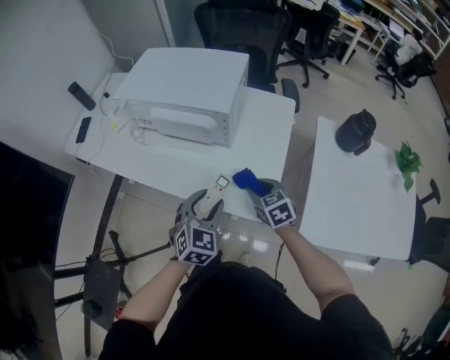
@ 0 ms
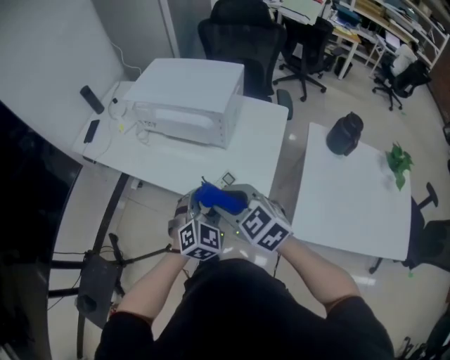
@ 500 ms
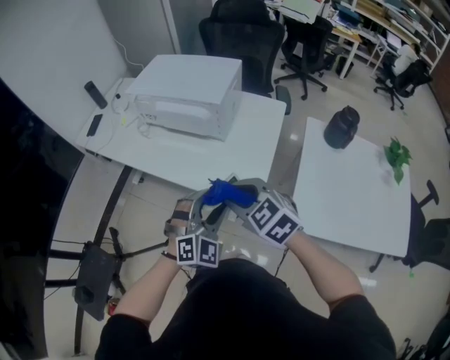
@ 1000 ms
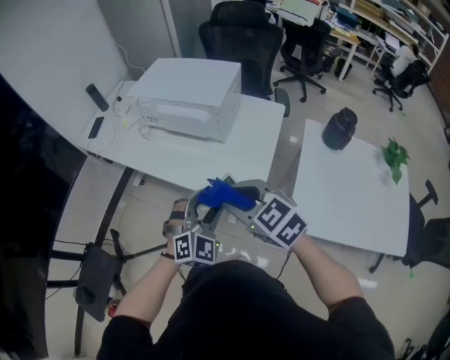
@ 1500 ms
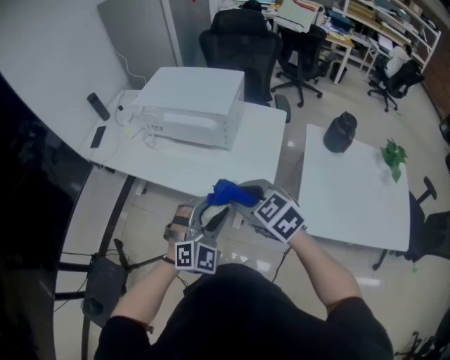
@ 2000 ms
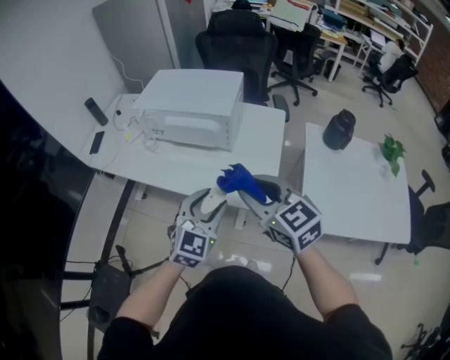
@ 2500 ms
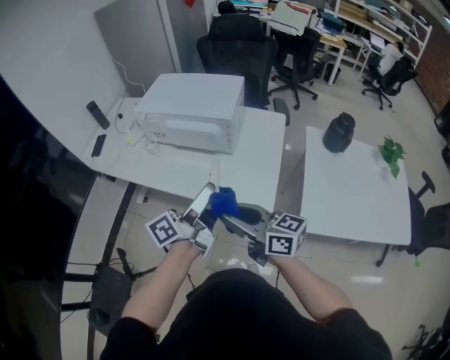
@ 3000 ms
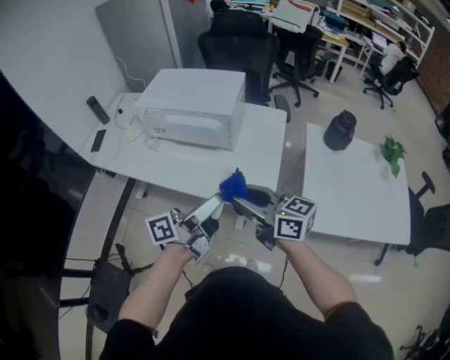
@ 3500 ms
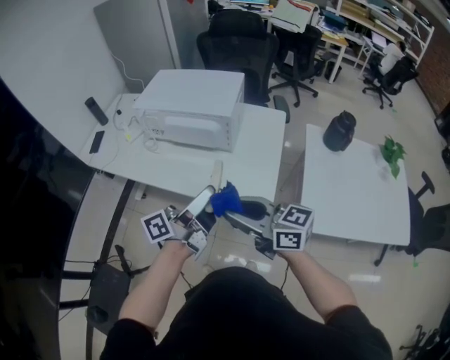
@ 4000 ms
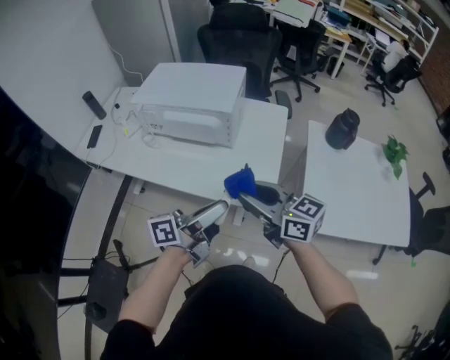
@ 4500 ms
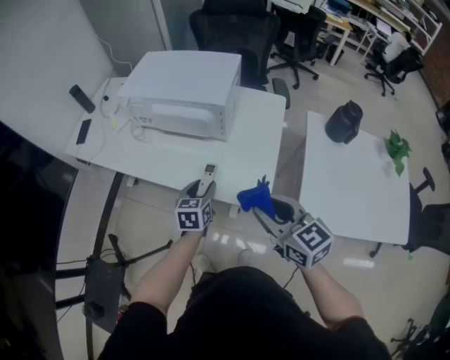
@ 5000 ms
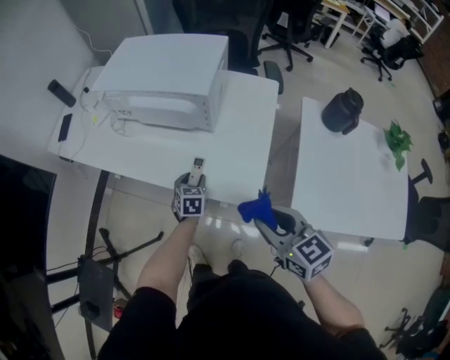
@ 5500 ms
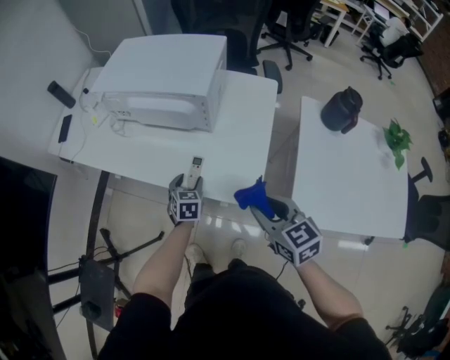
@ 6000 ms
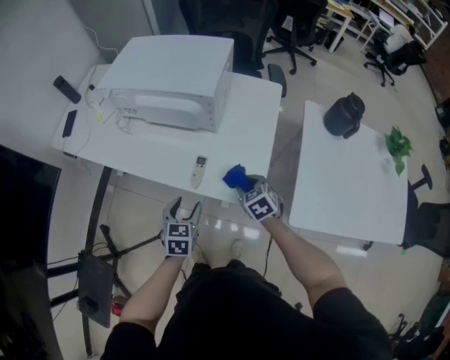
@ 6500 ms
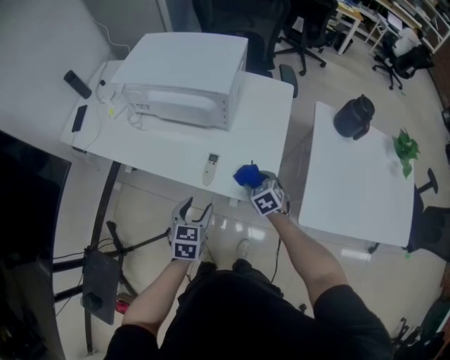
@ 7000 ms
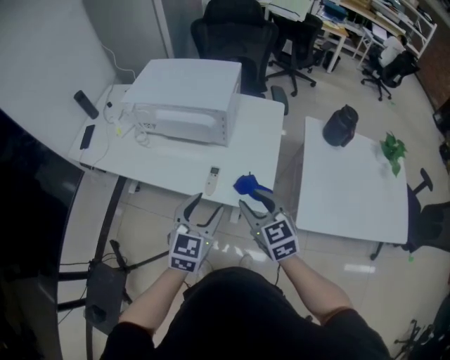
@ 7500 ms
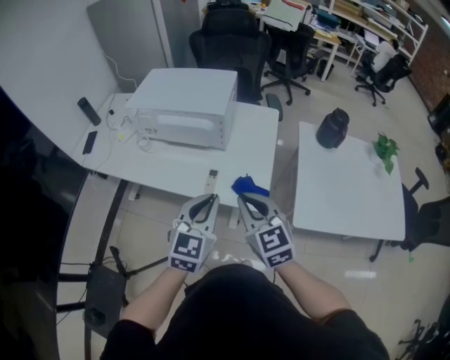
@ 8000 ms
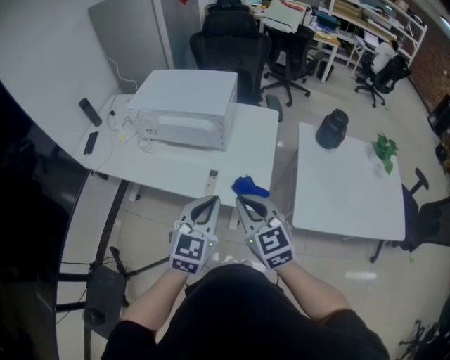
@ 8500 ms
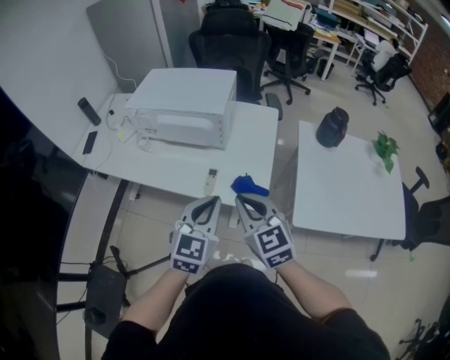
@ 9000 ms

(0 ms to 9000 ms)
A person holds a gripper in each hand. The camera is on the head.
0 ms - 2000 ms: The right gripper heads upward, backward and to the left, covering about 25 cm, and changes its angle by approximately 20 degrees. The left gripper moves backward and upward, roughly 15 cm, and changes its angle by about 30 degrees.
2000 ms - 4500 ms: The left gripper rolls counterclockwise, seen from behind, by about 110 degrees. The right gripper points its fingers roughly 30 degrees further upward.
4500 ms - 7000 ms: Both grippers travel together downward, roughly 25 cm. The right gripper points its fingers some 50 degrees further downward, and opens up. The left gripper angles its fingers downward, by approximately 50 degrees.
7000 ms - 9000 ms: The left gripper travels upward by roughly 20 cm, swivels roughly 30 degrees, and closes its fingers, while the right gripper travels upward and backward by approximately 30 cm, points its fingers about 40 degrees further upward, and closes up.

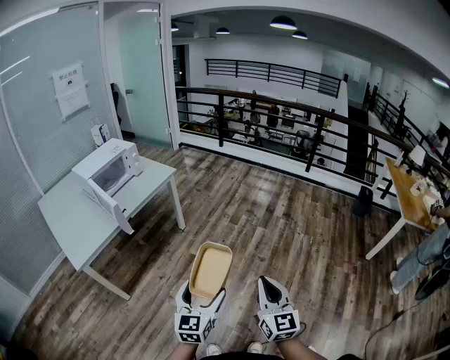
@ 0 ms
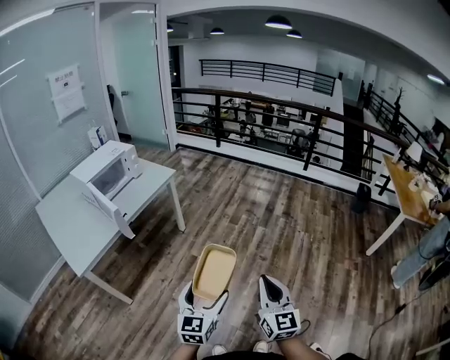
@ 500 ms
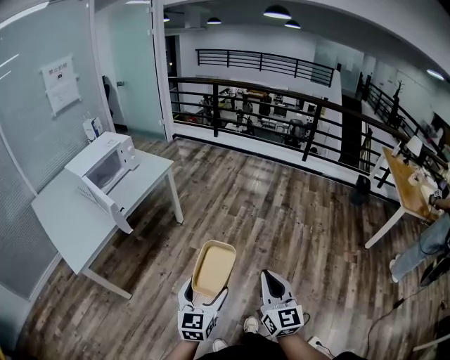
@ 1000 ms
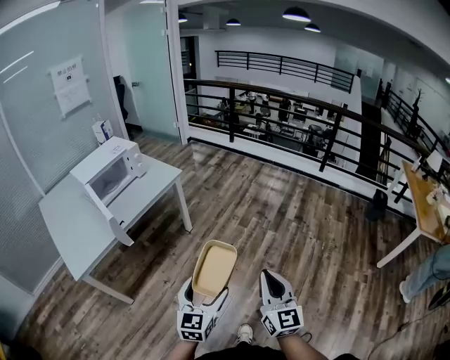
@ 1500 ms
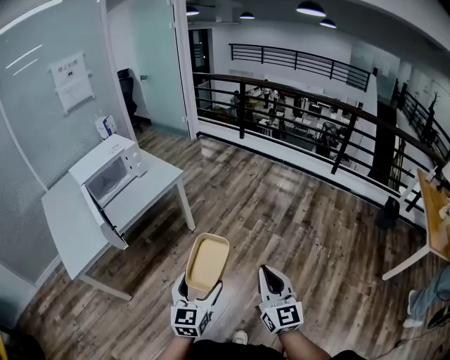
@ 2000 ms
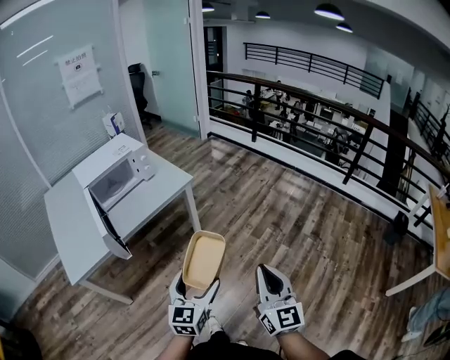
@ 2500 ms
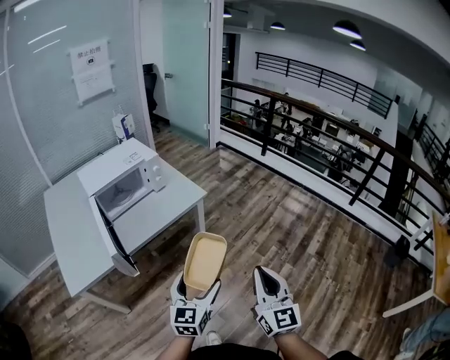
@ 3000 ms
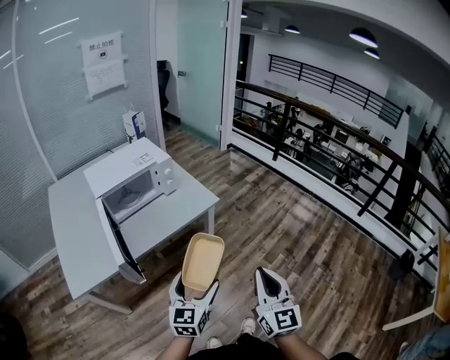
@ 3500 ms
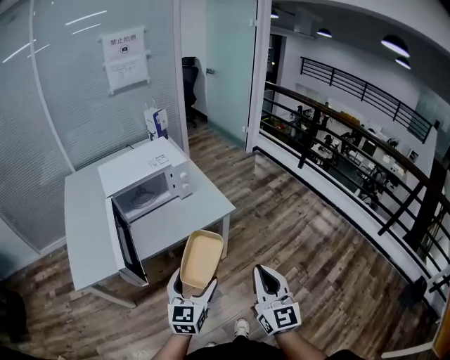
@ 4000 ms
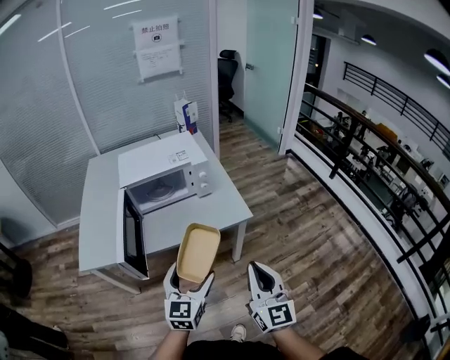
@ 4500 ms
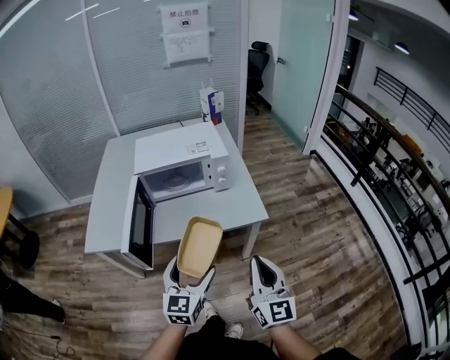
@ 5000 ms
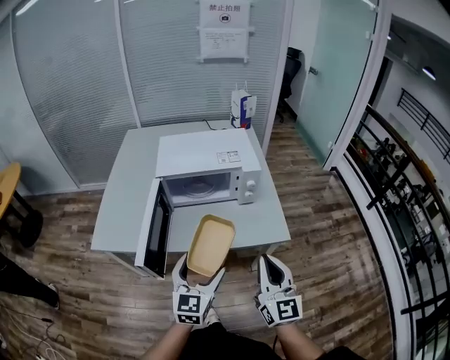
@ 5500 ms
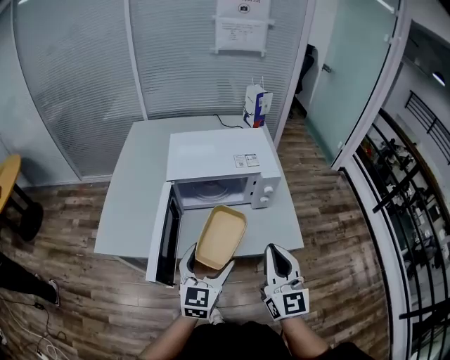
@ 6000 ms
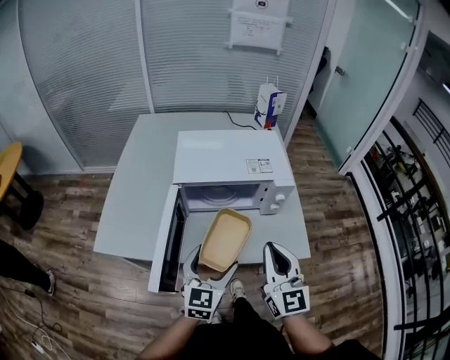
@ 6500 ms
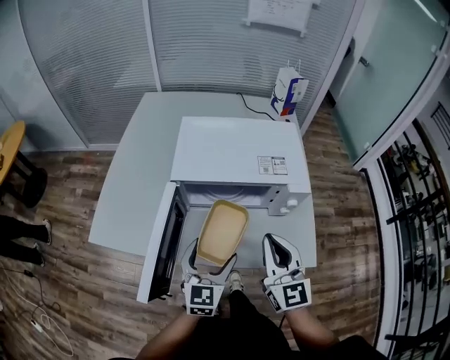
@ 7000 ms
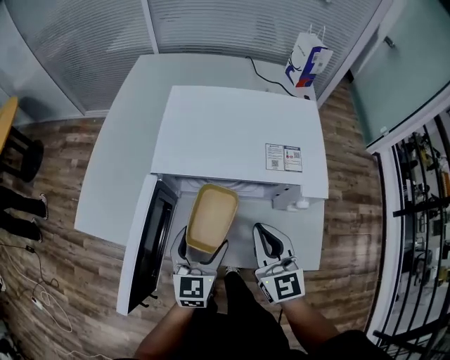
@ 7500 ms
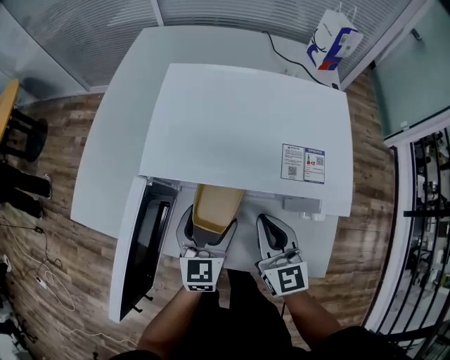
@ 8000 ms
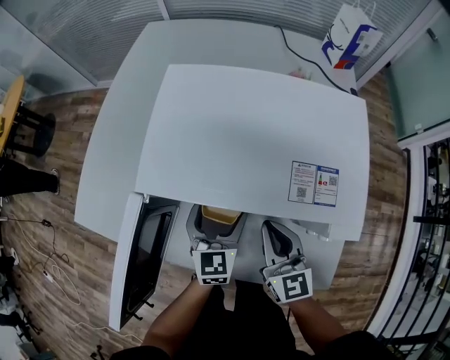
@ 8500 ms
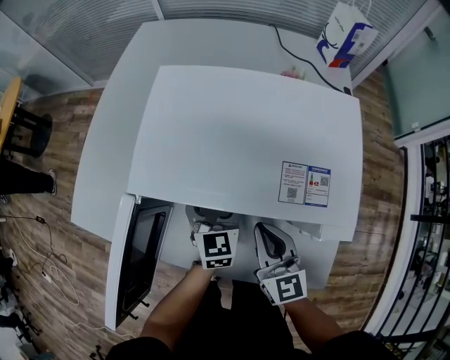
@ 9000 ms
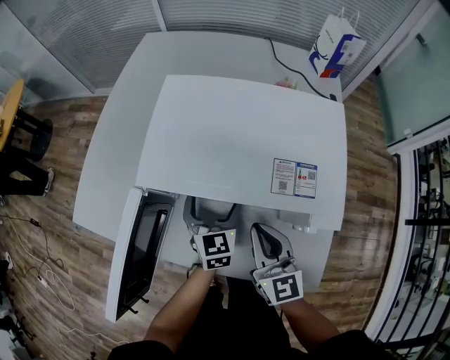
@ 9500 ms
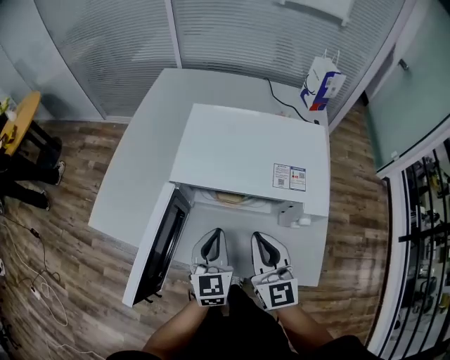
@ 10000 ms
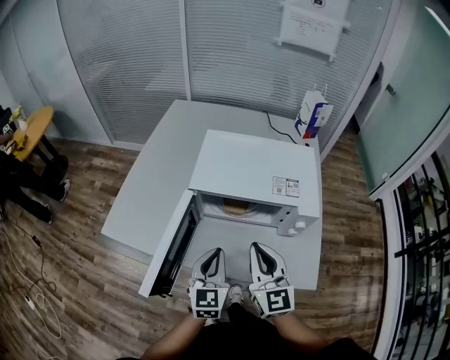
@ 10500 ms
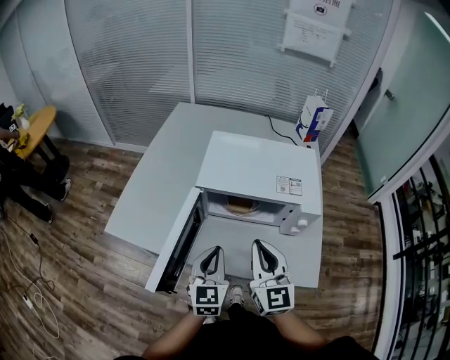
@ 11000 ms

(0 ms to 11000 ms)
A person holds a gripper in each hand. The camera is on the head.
0 ms - 2000 ms: Both grippers move forward, approximately 20 cm.
2000 ms - 3500 ms: The grippers both shift forward and to the left by roughly 30 cm.
3500 ms - 5500 ms: The right gripper ends up approximately 30 cm from where it was, and turns by approximately 40 degrees. The left gripper moves approximately 20 cm, and changes its angle by some 30 degrees.
5500 ms - 7500 ms: The right gripper heads forward, covering about 30 cm, and swivels about 30 degrees. The left gripper shifts approximately 25 cm forward and downward.
7500 ms - 9000 ms: The right gripper is displaced downward and forward by approximately 10 cm; the left gripper heads forward, covering roughly 15 cm.
9000 ms - 11000 ms: The left gripper shifts about 25 cm backward, upward and to the left, and closes; the right gripper travels upward, backward and to the left by some 20 cm.

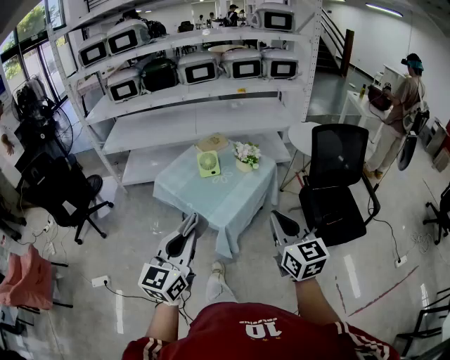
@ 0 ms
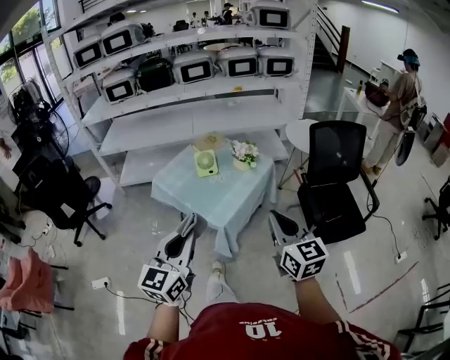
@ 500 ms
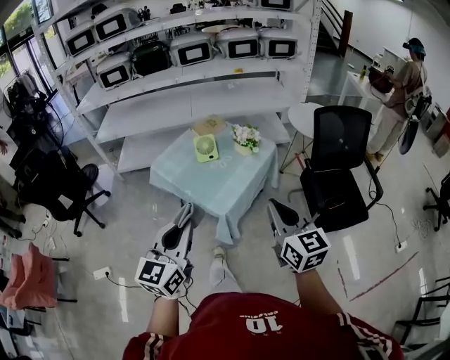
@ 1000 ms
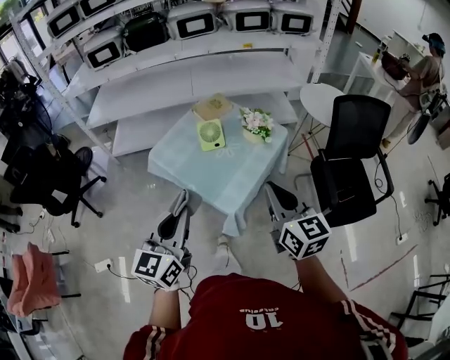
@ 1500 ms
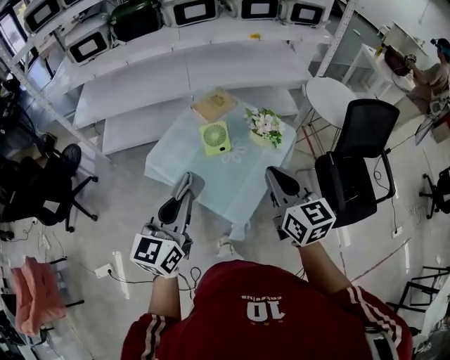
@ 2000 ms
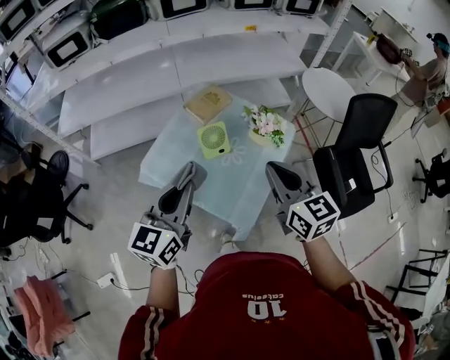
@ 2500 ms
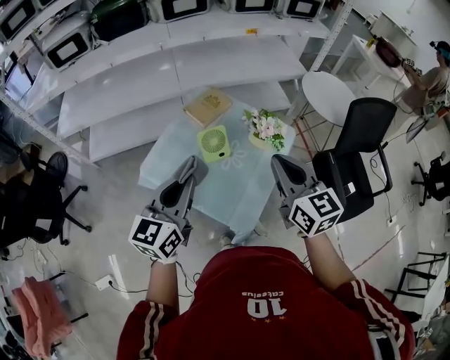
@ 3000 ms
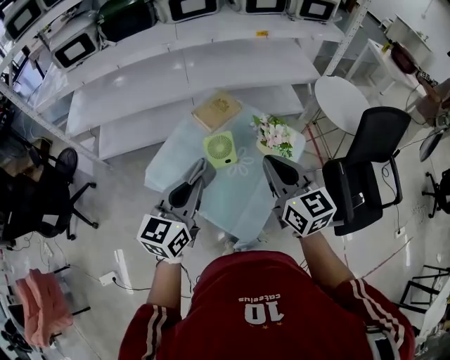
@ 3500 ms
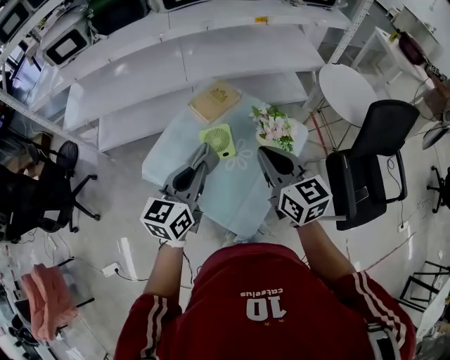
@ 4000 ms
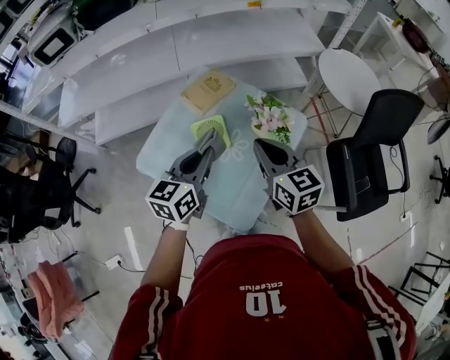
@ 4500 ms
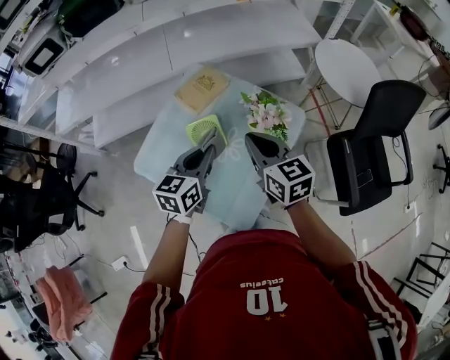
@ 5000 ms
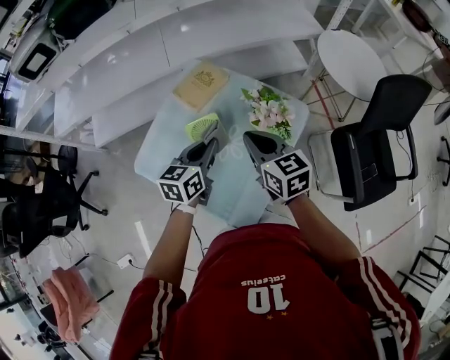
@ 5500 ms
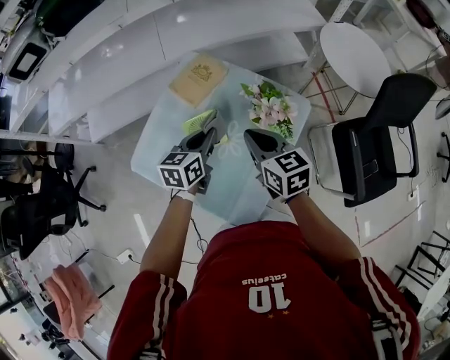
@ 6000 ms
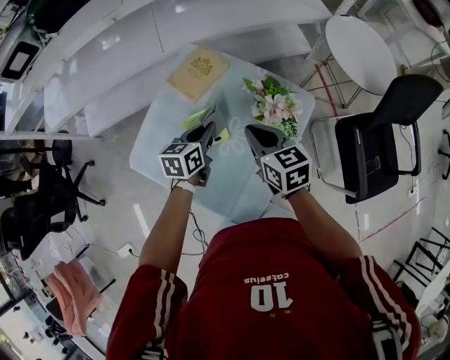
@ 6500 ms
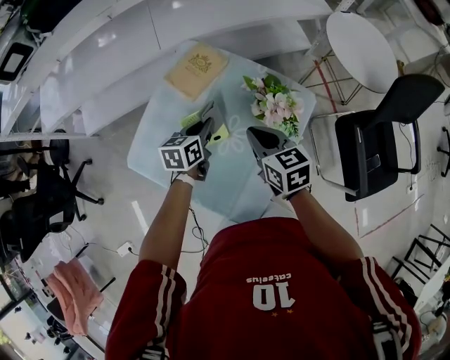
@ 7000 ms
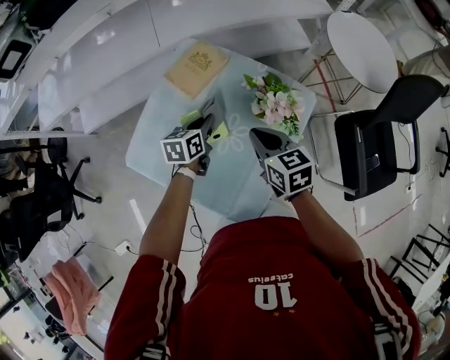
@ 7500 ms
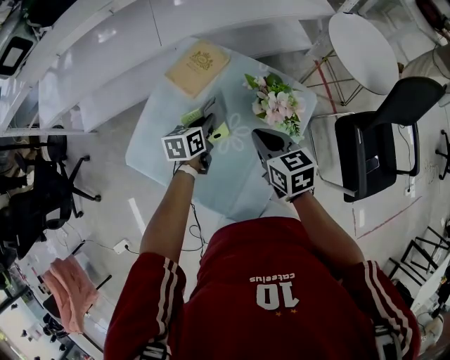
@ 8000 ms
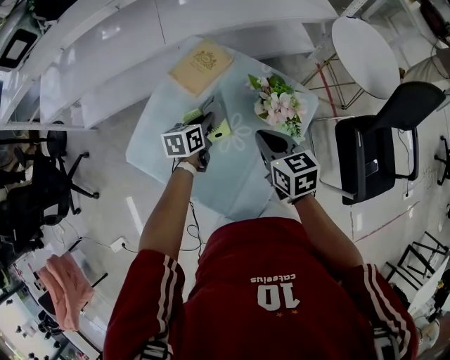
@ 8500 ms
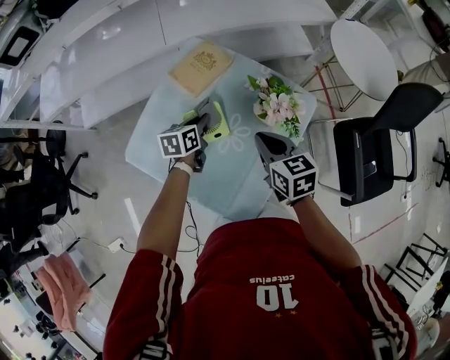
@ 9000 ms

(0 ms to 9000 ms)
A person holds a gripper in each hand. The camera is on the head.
0 ms - 2000 ms: Both grippers move forward and to the left, roughly 35 cm.
2000 ms - 4500 ms: The grippers both shift forward and downward by roughly 25 cm.
4500 ms - 7000 ms: The right gripper shifts about 15 cm downward and forward, while the left gripper shifts about 25 cm downward and forward, and changes its angle by approximately 20 degrees.
7000 ms - 9000 ms: There are only small adjustments of the grippers.
